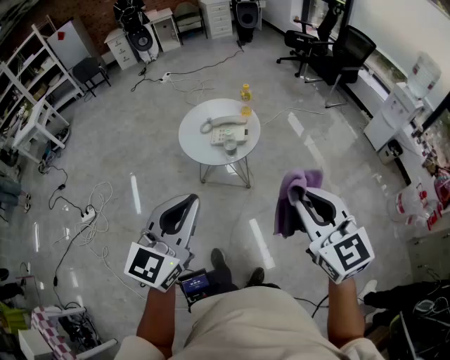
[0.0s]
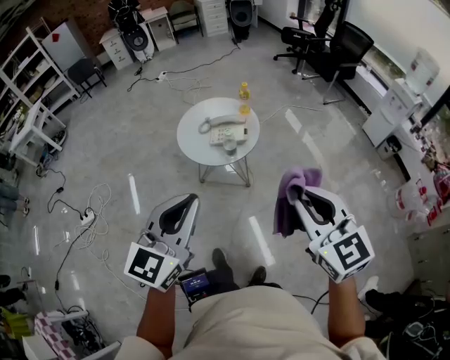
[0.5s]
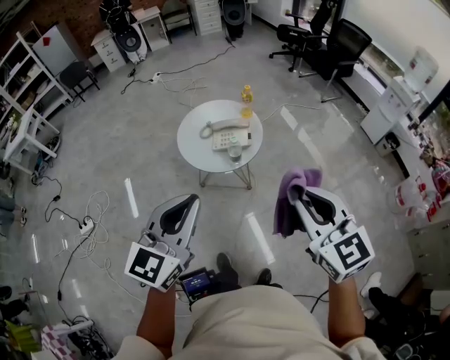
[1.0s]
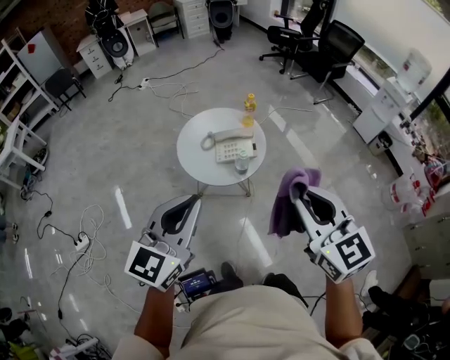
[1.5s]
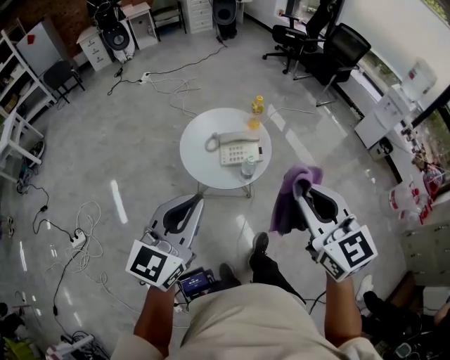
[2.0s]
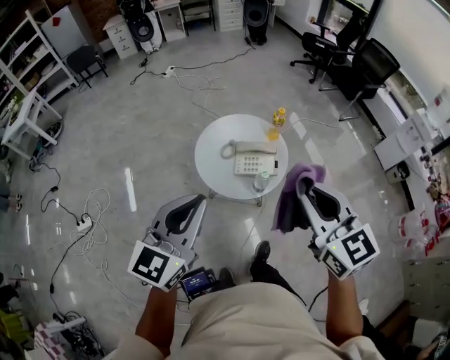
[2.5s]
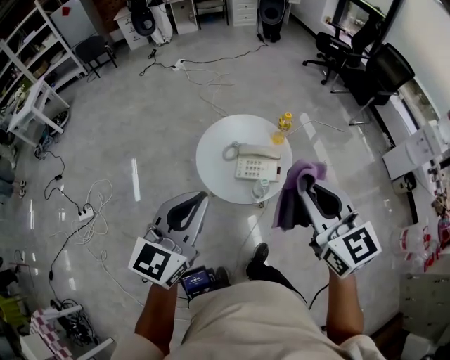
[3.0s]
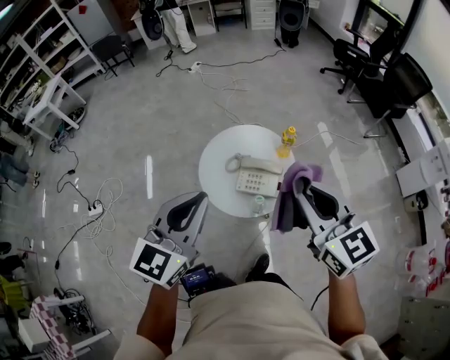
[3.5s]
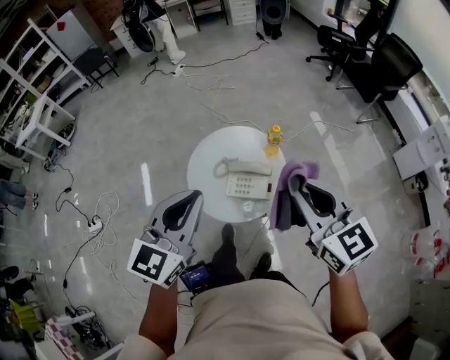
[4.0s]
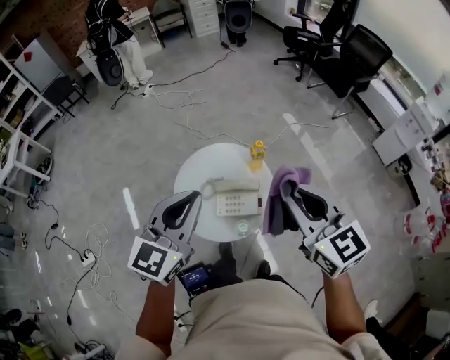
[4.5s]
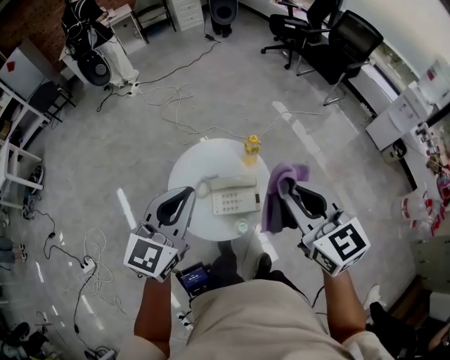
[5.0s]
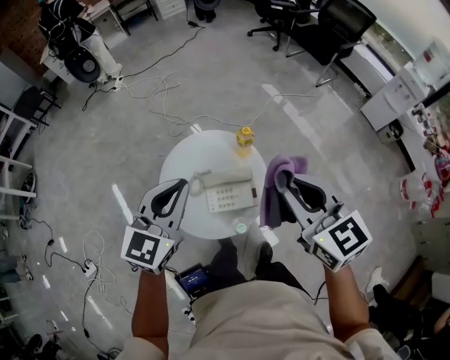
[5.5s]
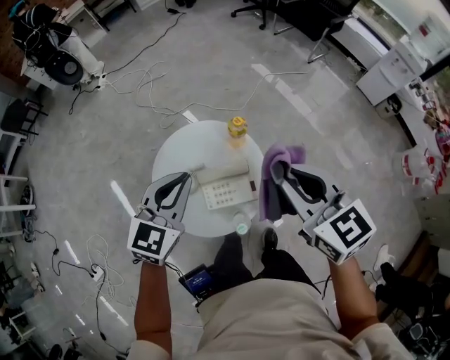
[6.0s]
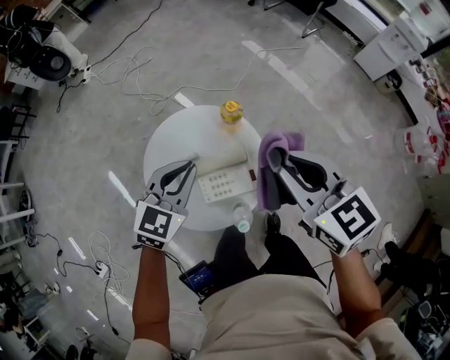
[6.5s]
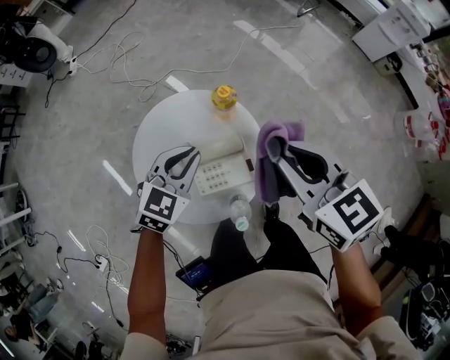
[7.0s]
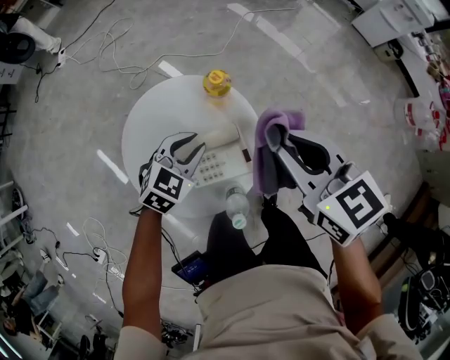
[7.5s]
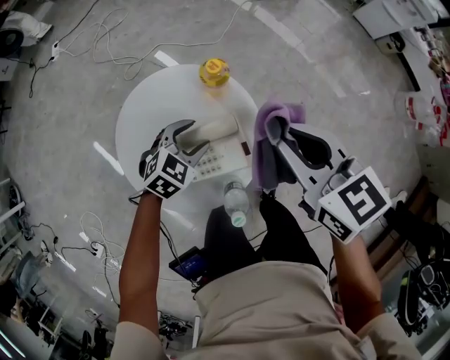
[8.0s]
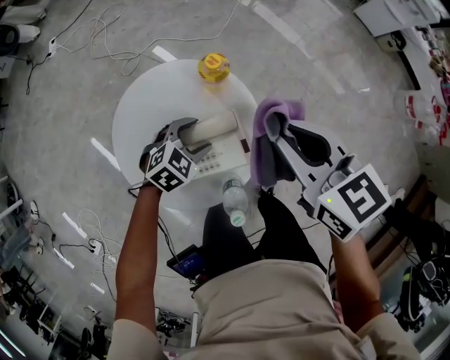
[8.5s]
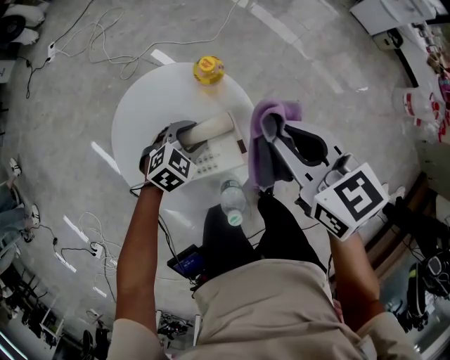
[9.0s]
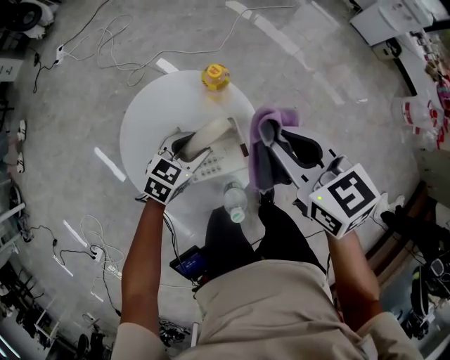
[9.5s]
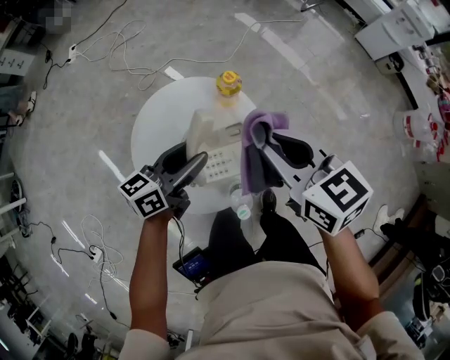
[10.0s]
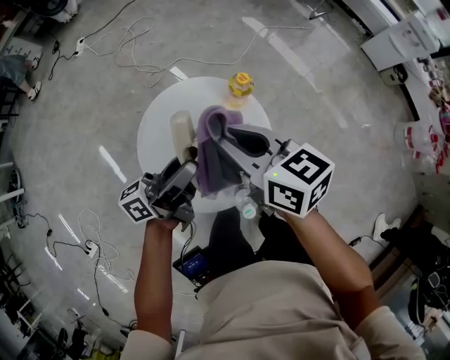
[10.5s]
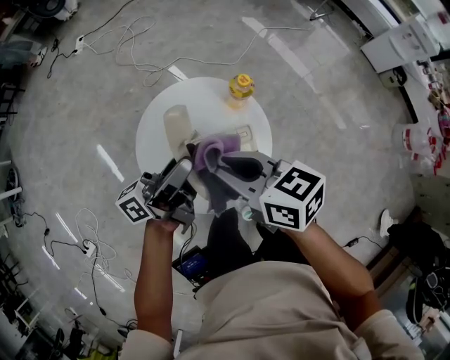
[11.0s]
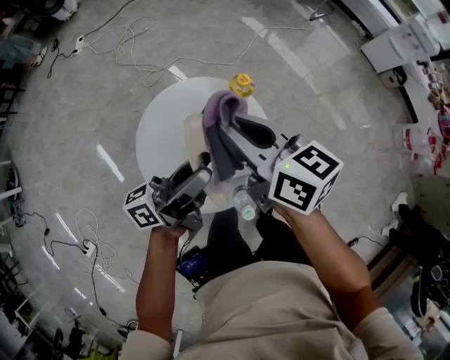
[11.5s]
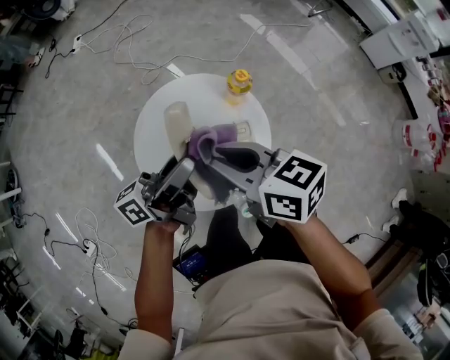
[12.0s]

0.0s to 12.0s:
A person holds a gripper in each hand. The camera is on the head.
0.0s to 2.0s: Both grippers move forward and to the left, roughly 25 cm.
2.0s to 4.0s: The left gripper is displaced forward and to the right by approximately 20 cm. The right gripper goes about 25 cm forward.
4.0s to 6.0s: The right gripper shifts some 15 cm forward and downward, and changes its angle by approximately 20 degrees; the left gripper shifts about 25 cm forward and downward, and rotates some 30 degrees.
6.0s to 8.0s: The left gripper goes roughly 30 cm downward, changes its angle by roughly 40 degrees, and opens. The right gripper goes roughly 15 cm downward.
8.0s to 10.0s: The right gripper ends up approximately 5 cm from where it was, while the left gripper moves upward, roughly 15 cm, and angles its fingers upward, by some 40 degrees.
10.0s to 12.0s: The right gripper heads to the left, covering some 10 cm, and rotates some 30 degrees; the left gripper goes roughly 10 cm upward, and turns by about 40 degrees.

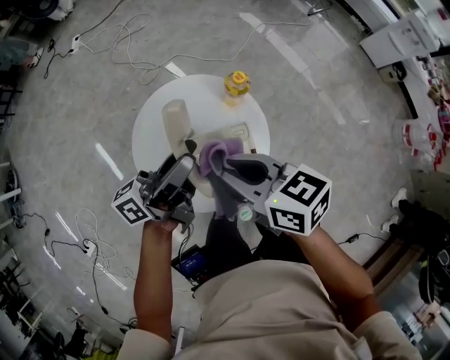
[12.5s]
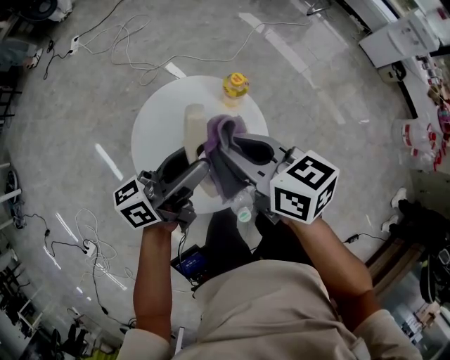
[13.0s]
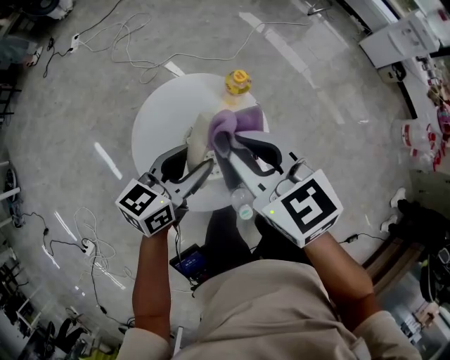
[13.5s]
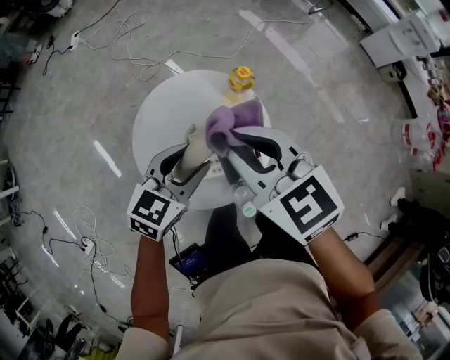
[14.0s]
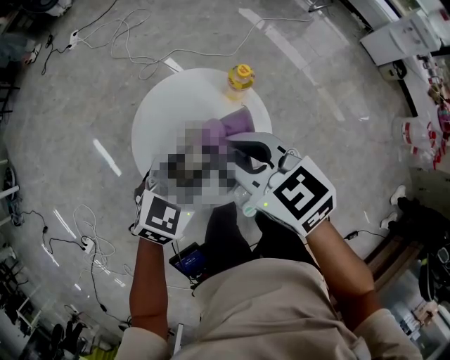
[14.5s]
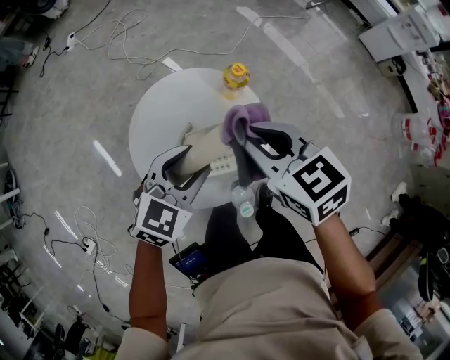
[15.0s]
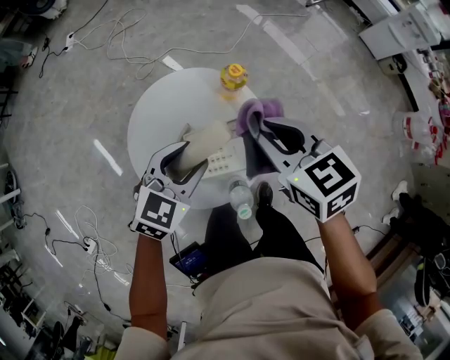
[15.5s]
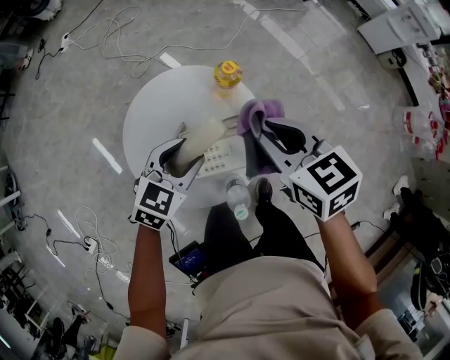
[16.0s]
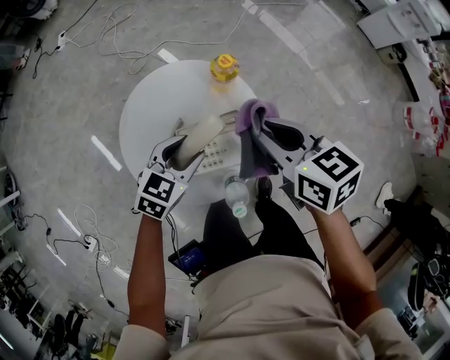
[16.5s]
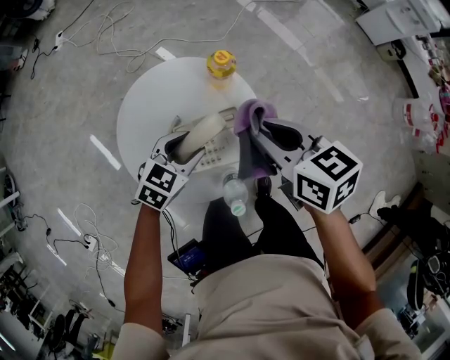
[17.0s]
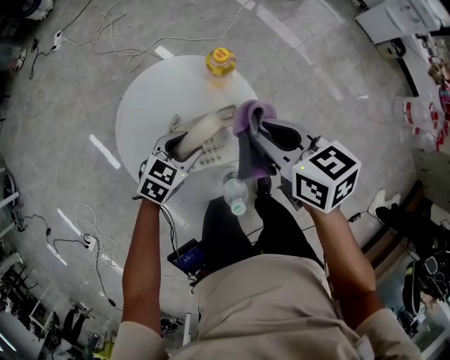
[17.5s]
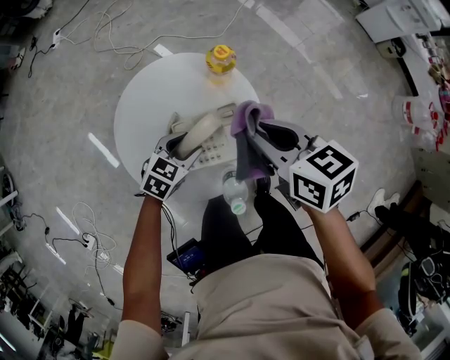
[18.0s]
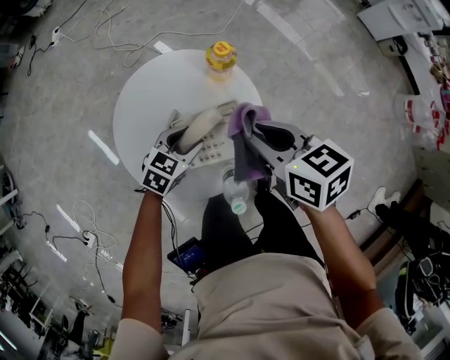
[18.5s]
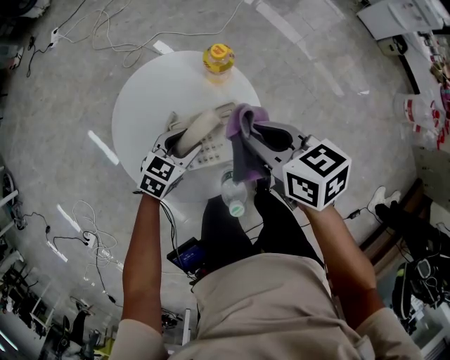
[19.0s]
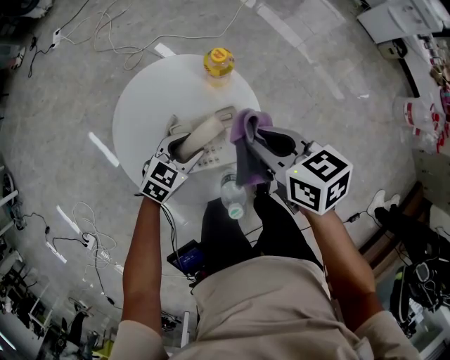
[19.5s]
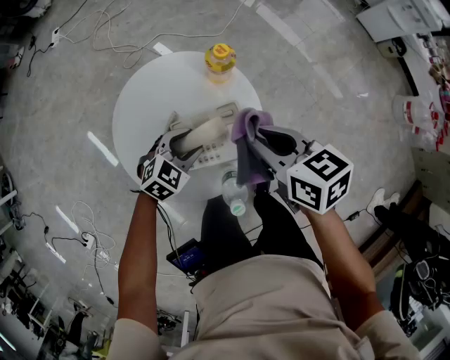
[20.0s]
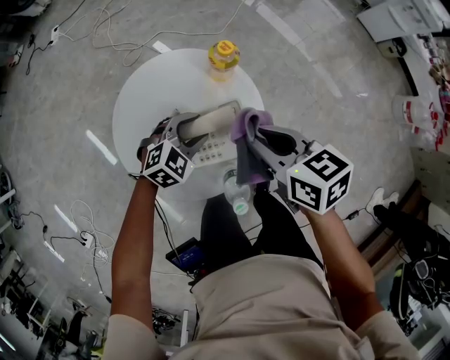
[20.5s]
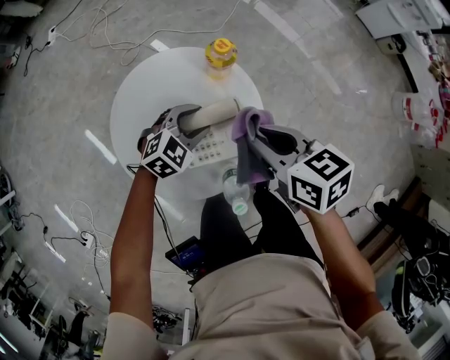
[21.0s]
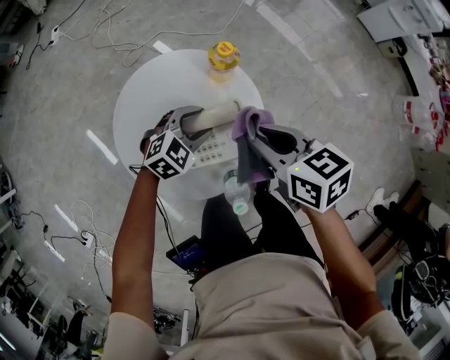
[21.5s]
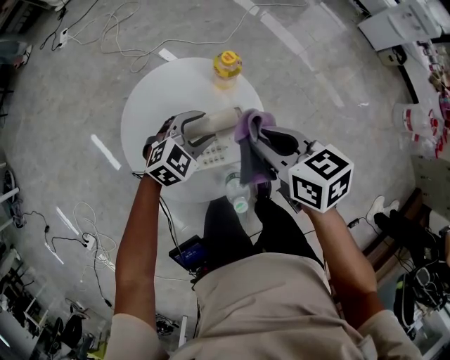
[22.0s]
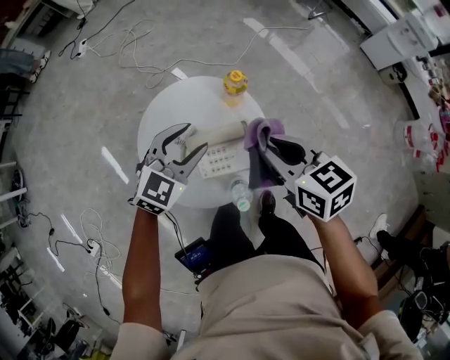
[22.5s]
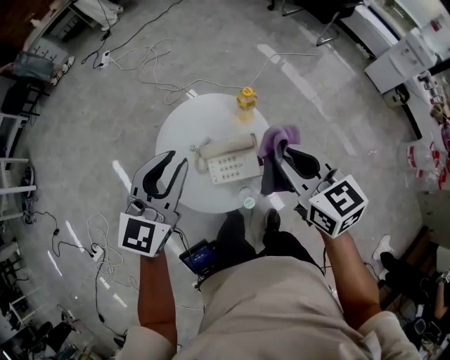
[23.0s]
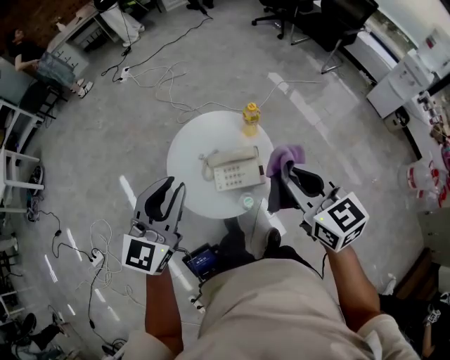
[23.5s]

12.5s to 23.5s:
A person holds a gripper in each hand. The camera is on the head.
12.5s to 14.5s: The right gripper changes its angle by about 20 degrees; the left gripper goes approximately 10 cm downward, and tips its fingers downward by roughly 50 degrees.
14.5s to 16.0s: The right gripper shifts approximately 10 cm to the right. The left gripper heads downward, covering some 5 cm.
16.0s to 18.0s: The left gripper moves downward, some 15 cm.
18.0s to 20.0s: There are only small adjustments of the grippers.
20.0s to 21.5s: The left gripper shifts by roughly 5 cm.
21.5s to 23.5s: The left gripper goes roughly 40 cm upward, tips its fingers upward by approximately 40 degrees, and closes its fingers; the right gripper travels upward and backward by approximately 25 cm, and rotates roughly 30 degrees.

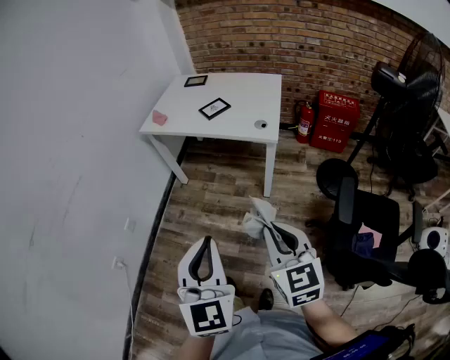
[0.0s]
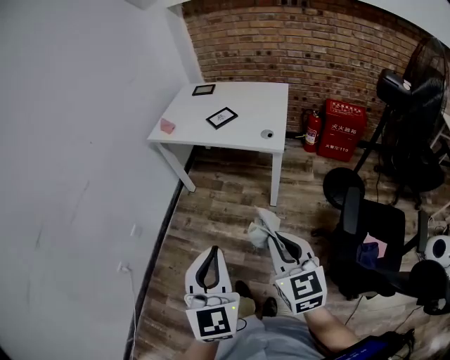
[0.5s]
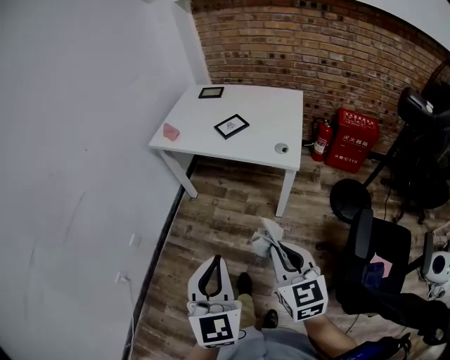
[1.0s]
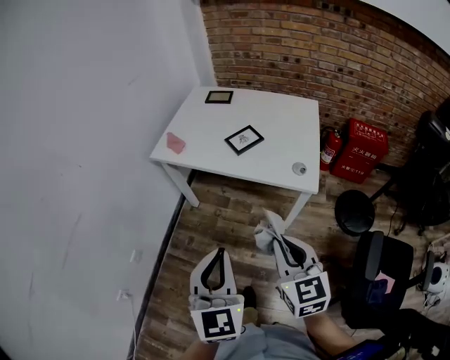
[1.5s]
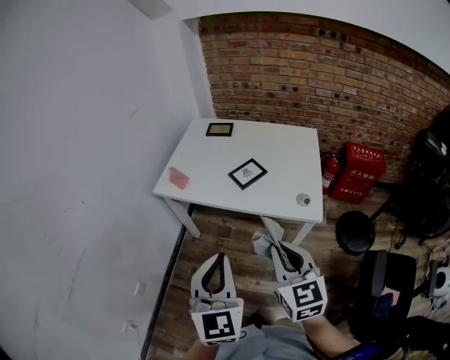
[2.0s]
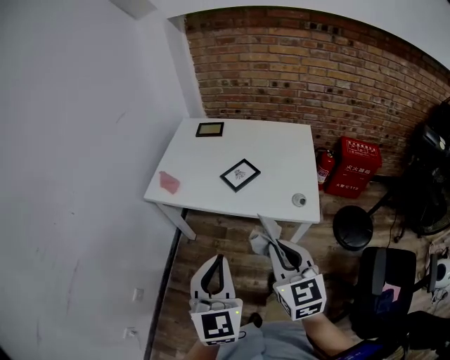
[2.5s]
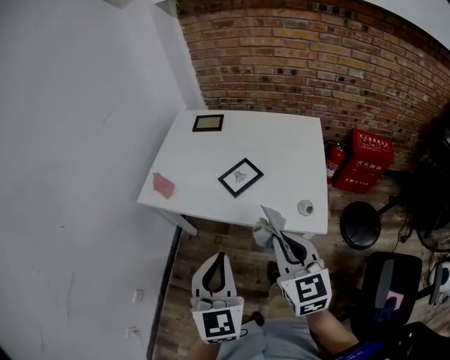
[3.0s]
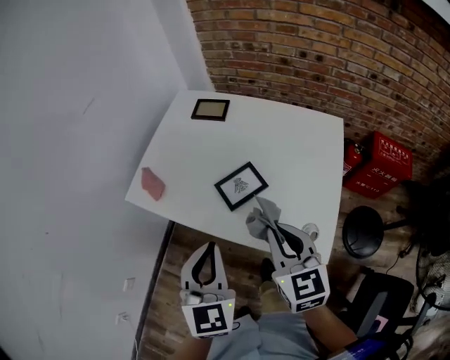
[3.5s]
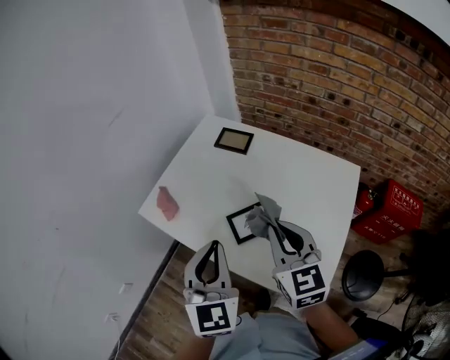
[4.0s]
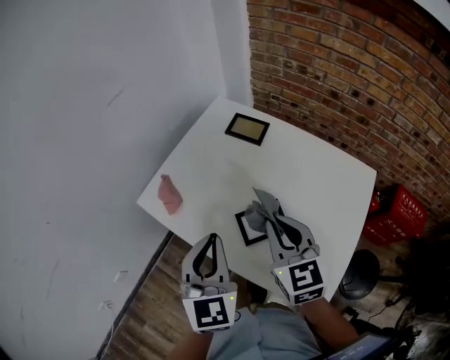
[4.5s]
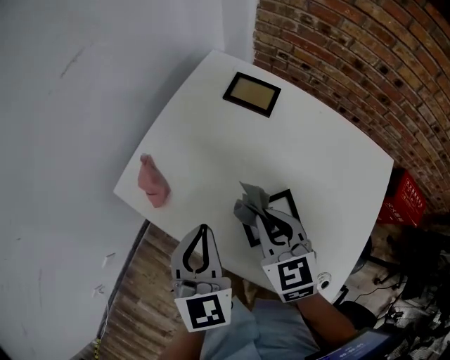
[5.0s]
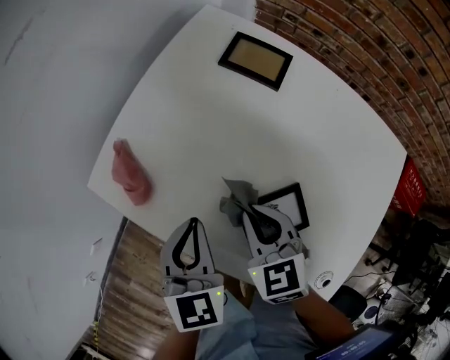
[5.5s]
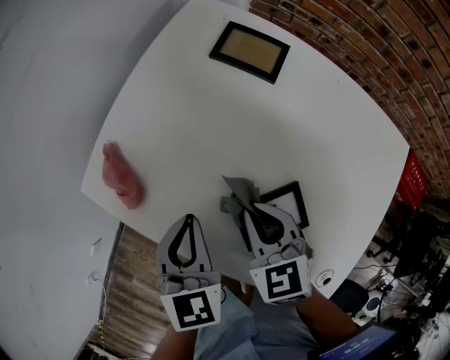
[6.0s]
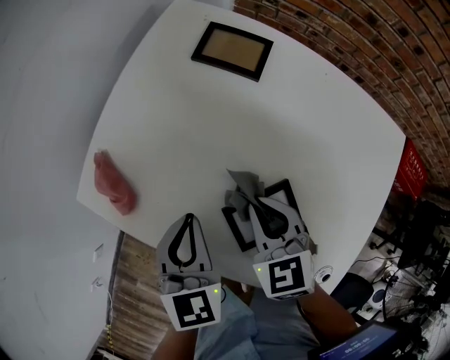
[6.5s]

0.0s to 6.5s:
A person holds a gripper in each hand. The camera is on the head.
0.0s to 2.0s: The grippers both shift forward by approximately 30 cm.
2.0s to 4.5s: The two grippers go about 40 cm forward. The right gripper swivels some 20 degrees. The left gripper changes its angle by roughly 20 degrees.
4.5s to 6.5s: The two grippers go roughly 20 cm downward and forward. The right gripper rotates roughly 20 degrees; the left gripper swivels some 20 degrees.
